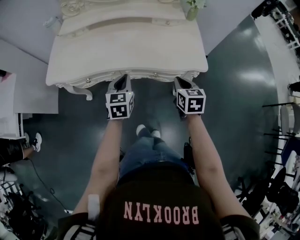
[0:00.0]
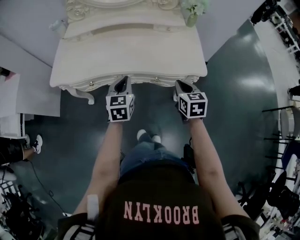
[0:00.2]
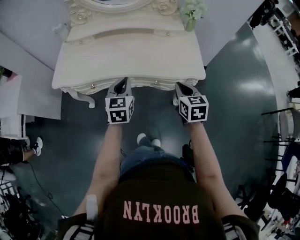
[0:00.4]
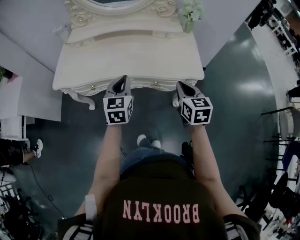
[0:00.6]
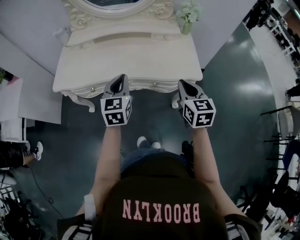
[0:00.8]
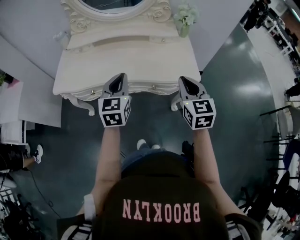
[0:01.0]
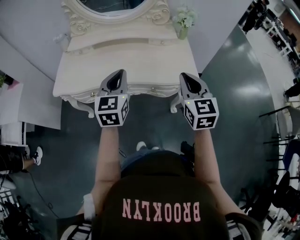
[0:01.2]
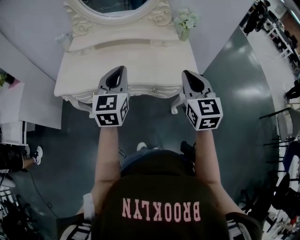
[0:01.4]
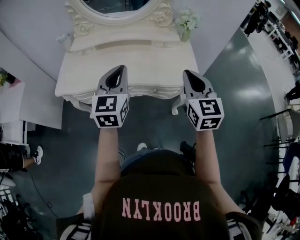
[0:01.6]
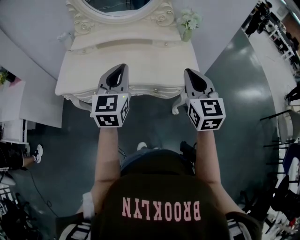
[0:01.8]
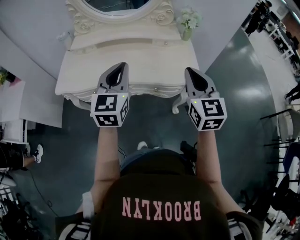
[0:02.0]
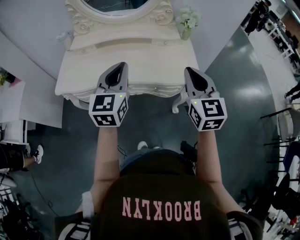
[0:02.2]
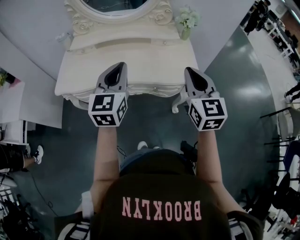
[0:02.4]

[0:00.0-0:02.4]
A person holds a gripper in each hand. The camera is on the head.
0:00.0 to 0:01.2: The two grippers go roughly 20 cm upward. The right gripper rotates about 30 degrees.
0:01.2 to 0:02.4: The left gripper shifts some 5 cm upward.

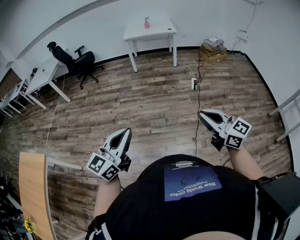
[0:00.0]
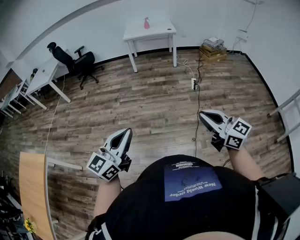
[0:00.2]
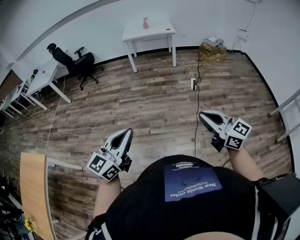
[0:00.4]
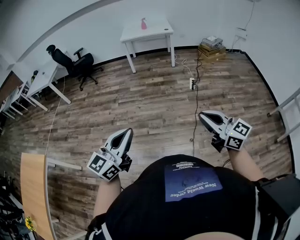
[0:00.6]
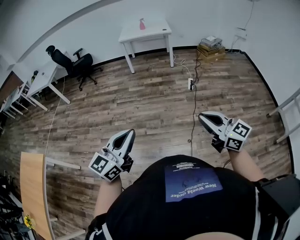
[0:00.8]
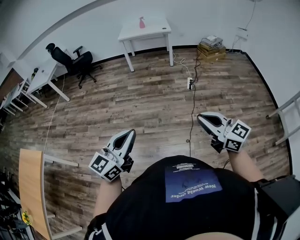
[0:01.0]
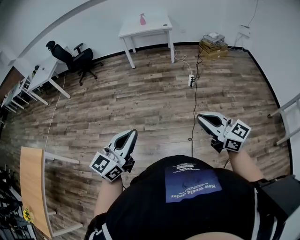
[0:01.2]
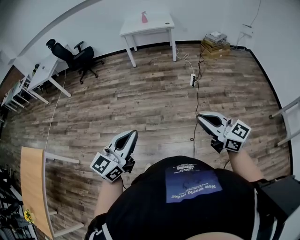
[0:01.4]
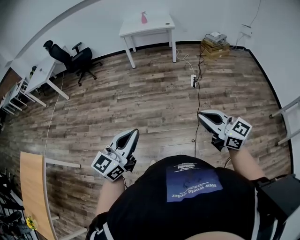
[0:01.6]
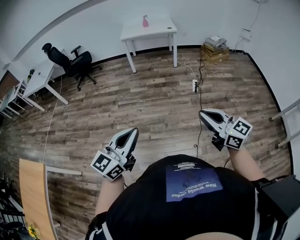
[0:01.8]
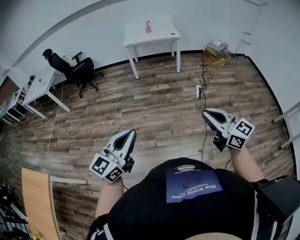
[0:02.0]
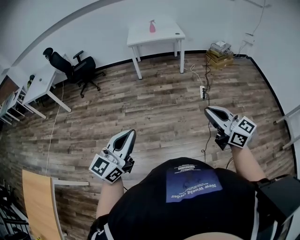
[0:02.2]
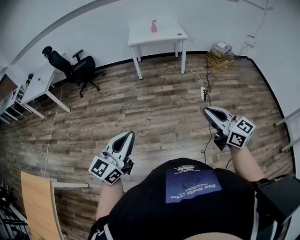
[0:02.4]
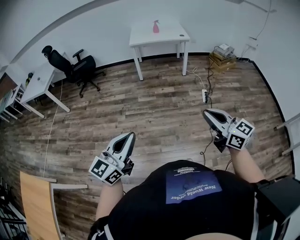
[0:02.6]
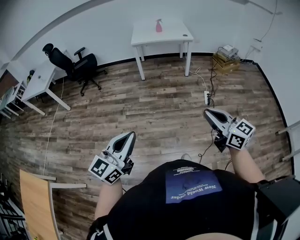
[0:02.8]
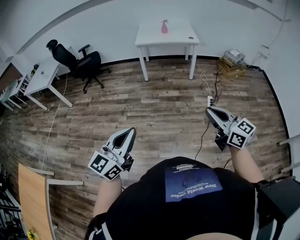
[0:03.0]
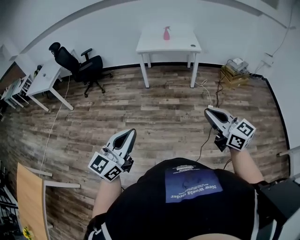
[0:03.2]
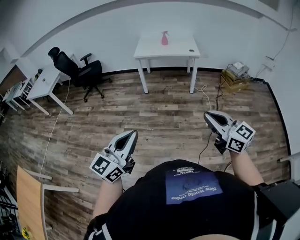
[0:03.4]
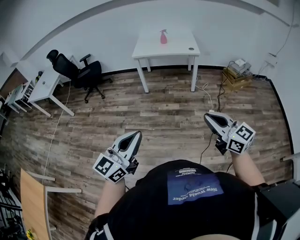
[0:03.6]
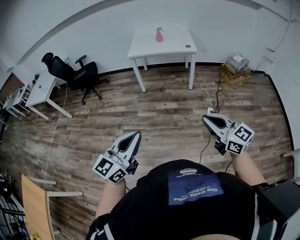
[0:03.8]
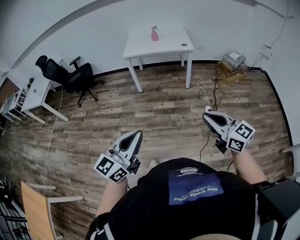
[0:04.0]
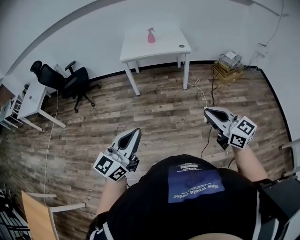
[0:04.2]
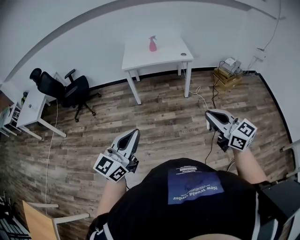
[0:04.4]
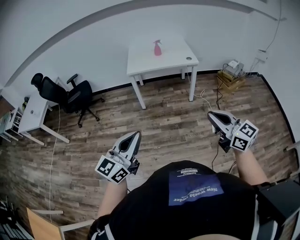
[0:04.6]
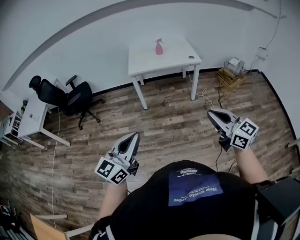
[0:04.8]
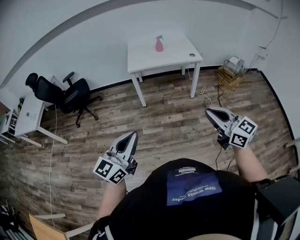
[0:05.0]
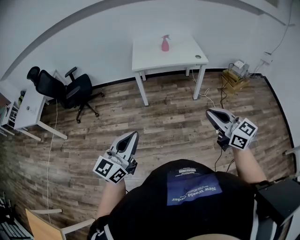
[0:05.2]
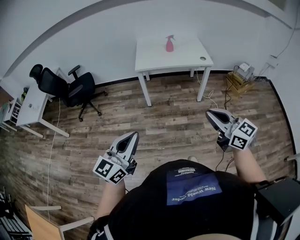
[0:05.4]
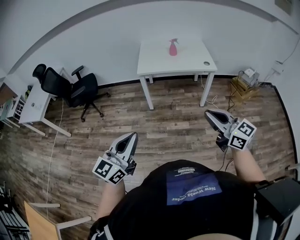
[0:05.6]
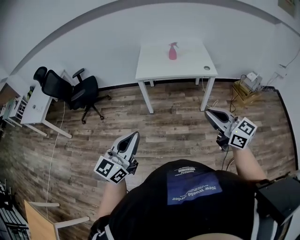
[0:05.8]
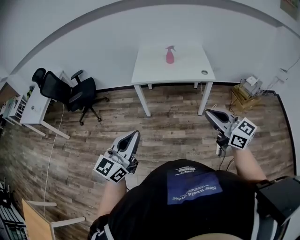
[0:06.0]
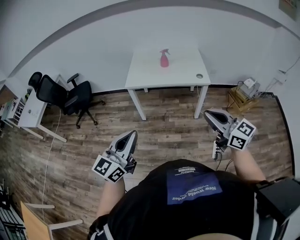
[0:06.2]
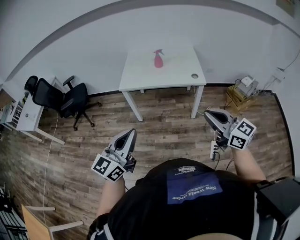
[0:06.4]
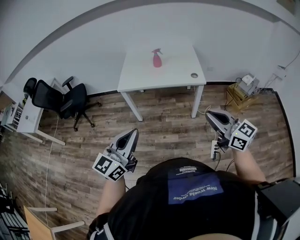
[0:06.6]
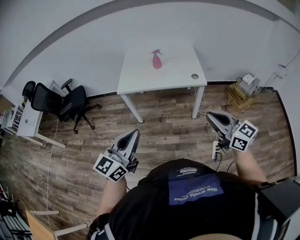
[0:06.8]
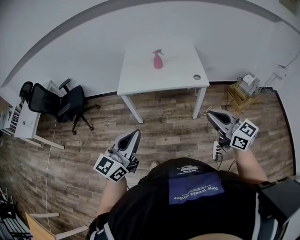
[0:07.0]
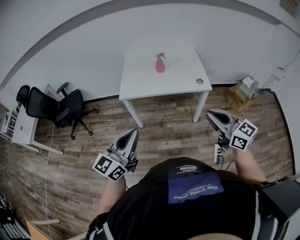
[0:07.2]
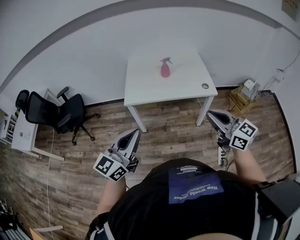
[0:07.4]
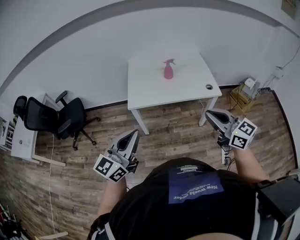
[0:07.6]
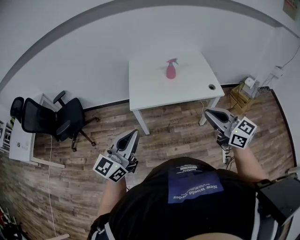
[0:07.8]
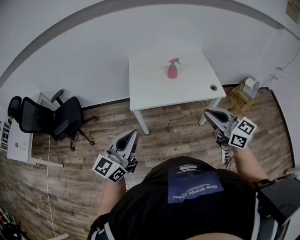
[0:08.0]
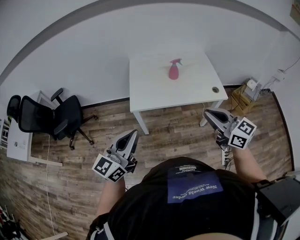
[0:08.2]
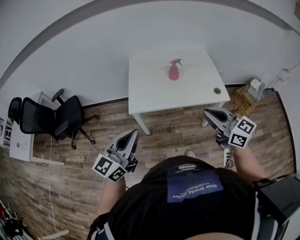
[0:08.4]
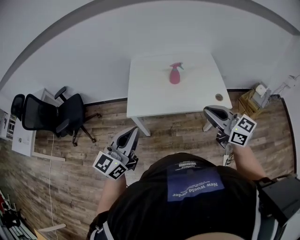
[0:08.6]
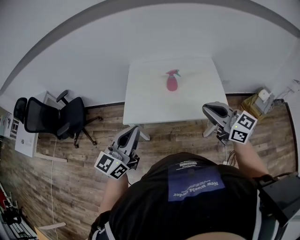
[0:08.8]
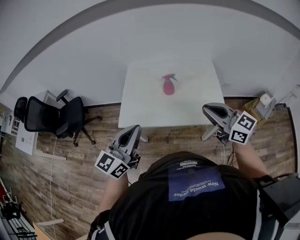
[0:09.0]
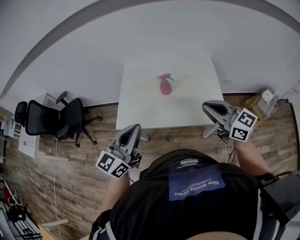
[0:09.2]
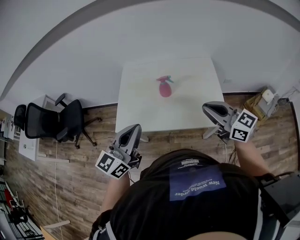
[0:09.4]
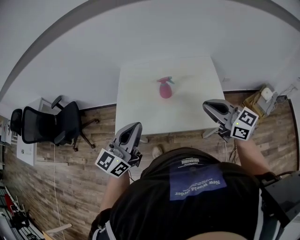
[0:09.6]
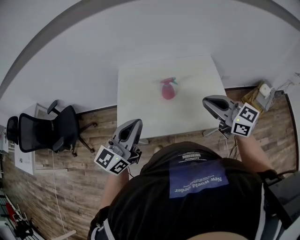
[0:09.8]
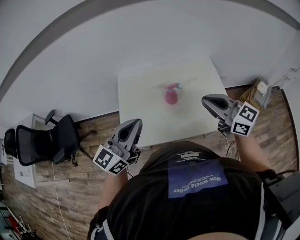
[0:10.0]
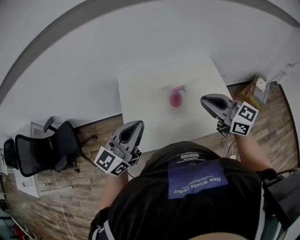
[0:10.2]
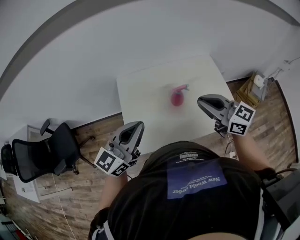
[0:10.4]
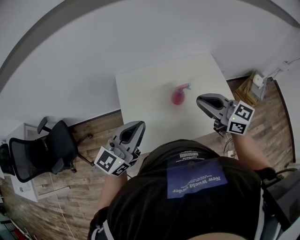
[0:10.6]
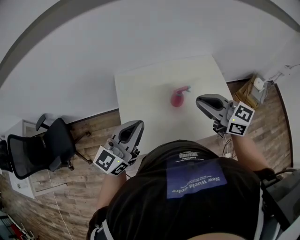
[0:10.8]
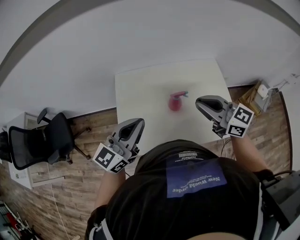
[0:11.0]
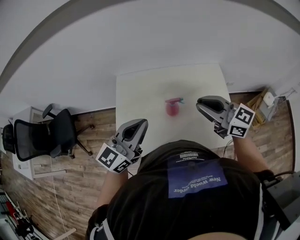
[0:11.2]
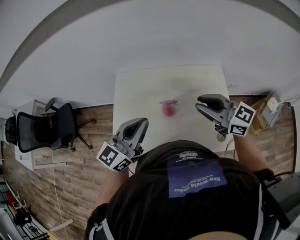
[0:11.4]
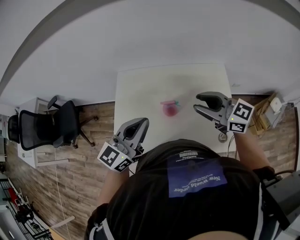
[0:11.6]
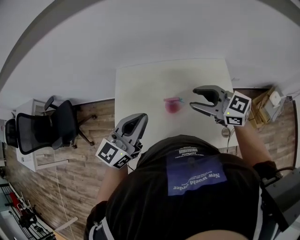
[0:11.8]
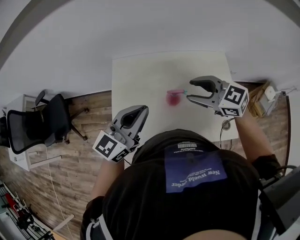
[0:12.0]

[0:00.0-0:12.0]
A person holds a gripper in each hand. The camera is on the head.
0:00.0 to 0:01.6: The two grippers go approximately 10 cm to the right and forward.
0:01.6 to 0:03.0: The left gripper shifts approximately 35 cm forward and to the left. The right gripper is displaced forward by about 35 cm.
0:03.0 to 0:04.4: Both grippers travel together forward, some 25 cm.
0:04.4 to 0:06.0: Both grippers move forward, some 30 cm.
0:06.0 to 0:07.6: The two grippers go about 25 cm forward.
0:07.6 to 0:09.0: The grippers both shift forward and to the right by about 30 cm.
0:09.0 to 0:10.4: The two grippers go approximately 25 cm forward and to the left.
0:10.4 to 0:12.0: The right gripper moves forward and downward, roughly 15 cm, goes to the right and returns, about 10 cm each way, turns by roughly 30 degrees, and opens its fingers; the left gripper shifts approximately 15 cm to the right and forward.

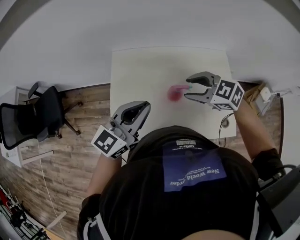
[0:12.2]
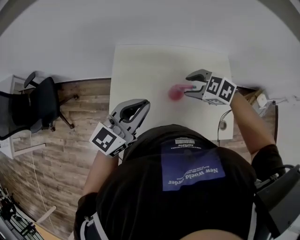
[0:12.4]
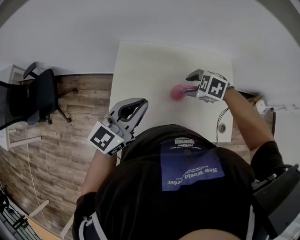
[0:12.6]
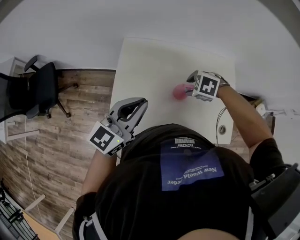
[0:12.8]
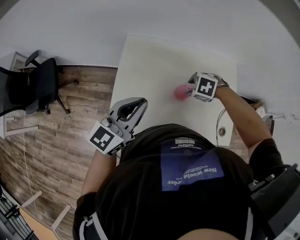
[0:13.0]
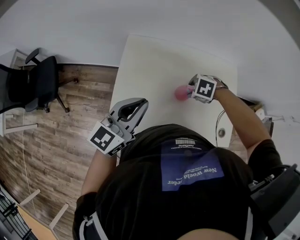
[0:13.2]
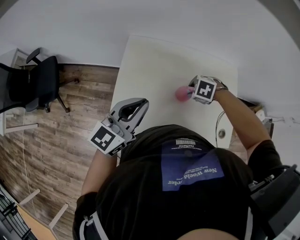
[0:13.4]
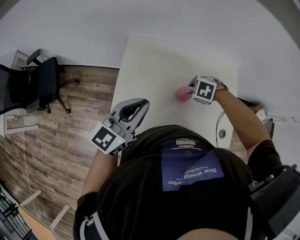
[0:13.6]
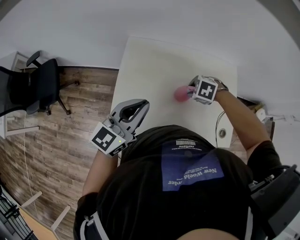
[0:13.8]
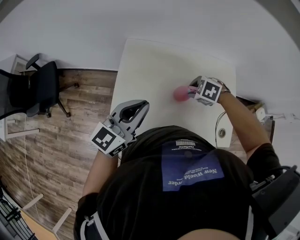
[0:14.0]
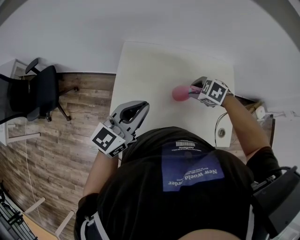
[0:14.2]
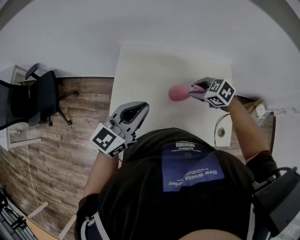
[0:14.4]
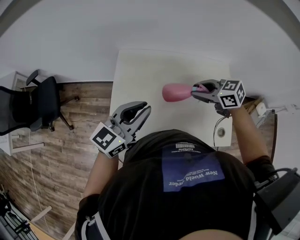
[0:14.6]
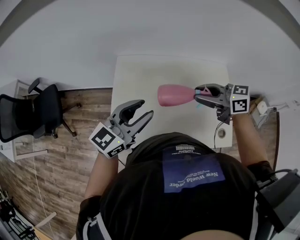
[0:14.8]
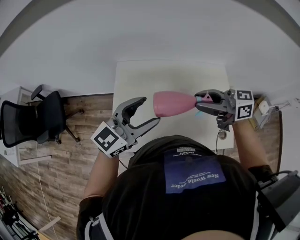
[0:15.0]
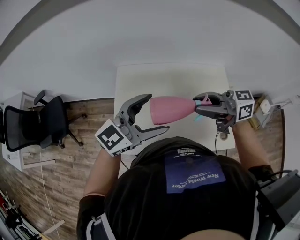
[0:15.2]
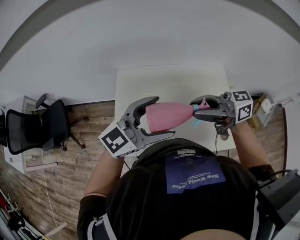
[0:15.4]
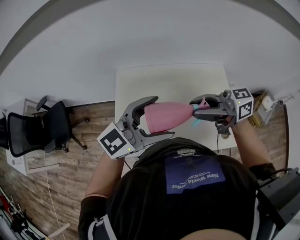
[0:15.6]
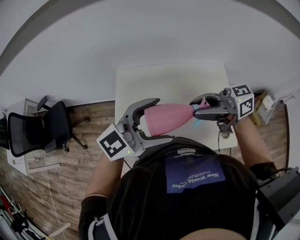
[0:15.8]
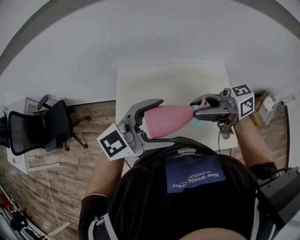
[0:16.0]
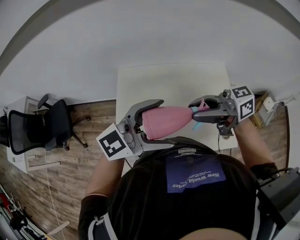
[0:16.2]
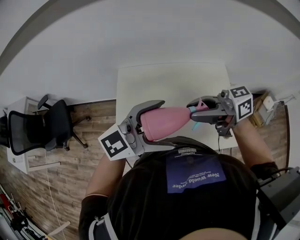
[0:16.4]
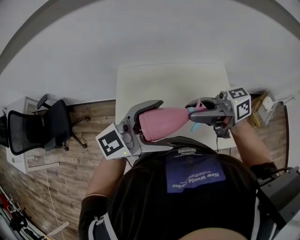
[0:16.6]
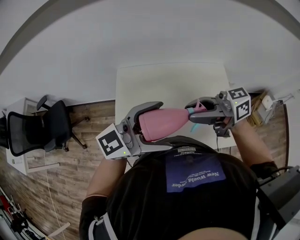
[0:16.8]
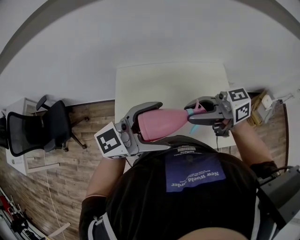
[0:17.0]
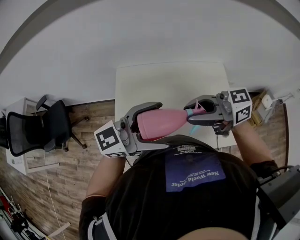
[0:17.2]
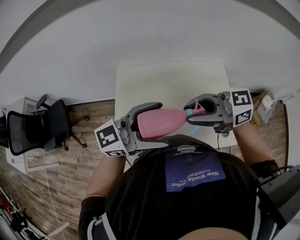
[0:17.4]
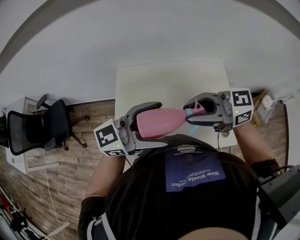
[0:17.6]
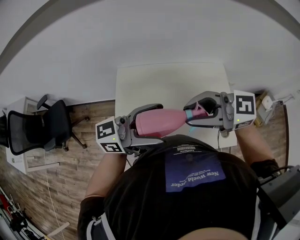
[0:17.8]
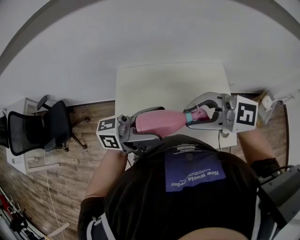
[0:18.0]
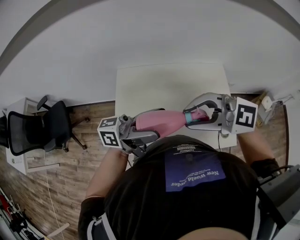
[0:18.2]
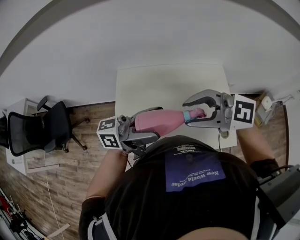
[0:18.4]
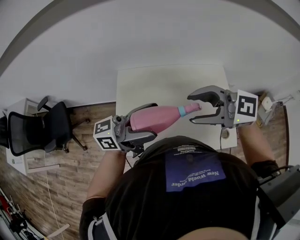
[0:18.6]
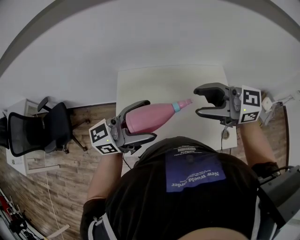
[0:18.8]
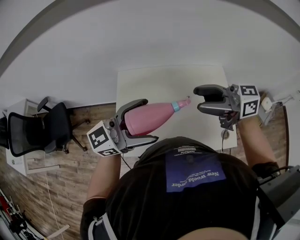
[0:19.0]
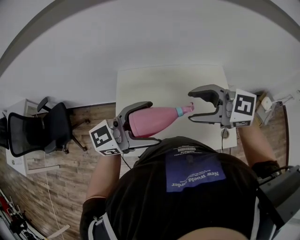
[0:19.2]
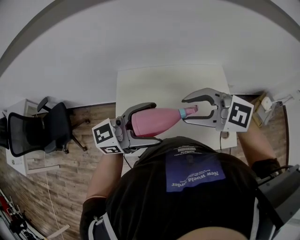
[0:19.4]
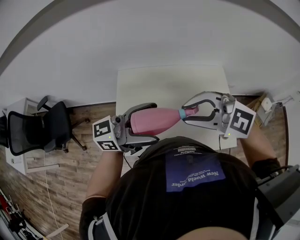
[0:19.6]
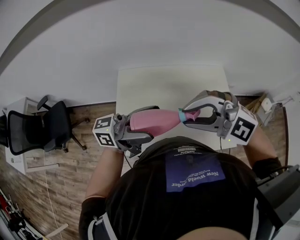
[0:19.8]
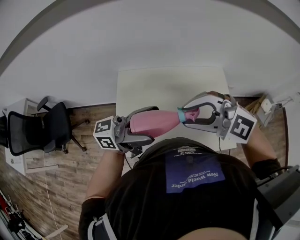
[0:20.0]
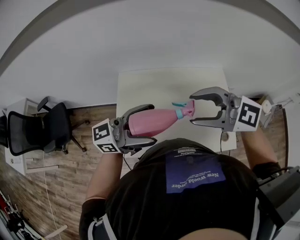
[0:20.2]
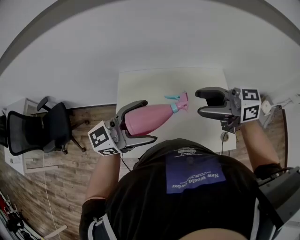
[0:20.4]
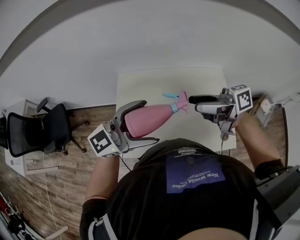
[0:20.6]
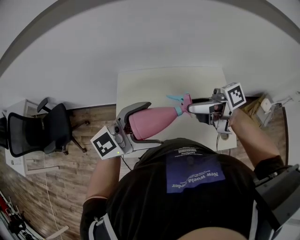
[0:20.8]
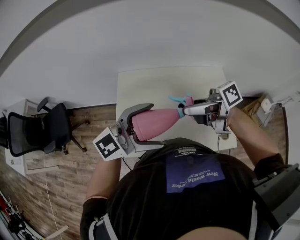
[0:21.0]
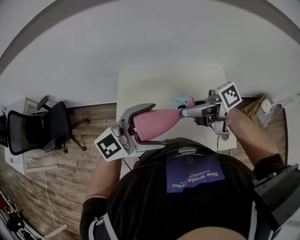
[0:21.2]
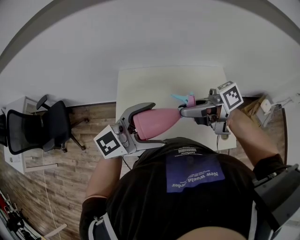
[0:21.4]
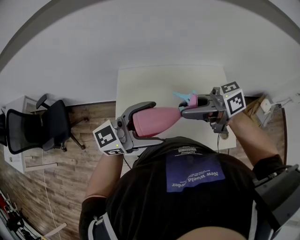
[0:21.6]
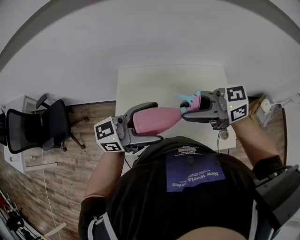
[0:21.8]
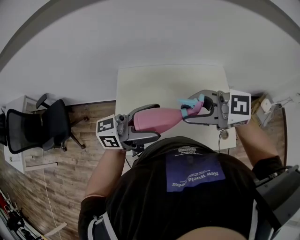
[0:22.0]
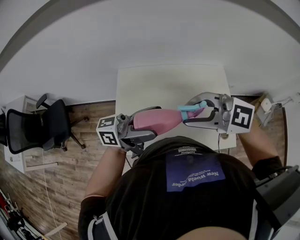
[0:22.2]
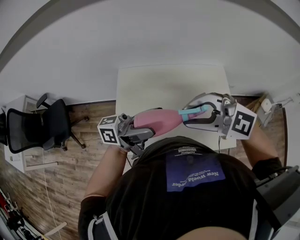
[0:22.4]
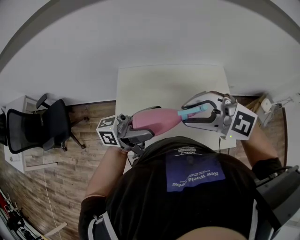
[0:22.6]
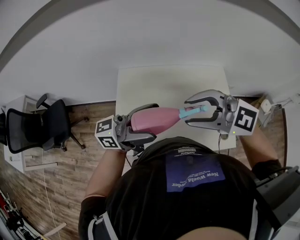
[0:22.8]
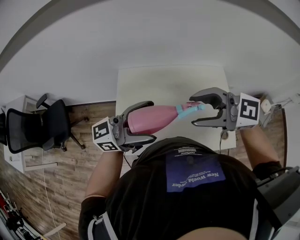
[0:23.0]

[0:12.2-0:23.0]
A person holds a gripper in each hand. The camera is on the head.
0:12.2 to 0:13.8: The right gripper goes roughly 15 cm downward, and tilts its fingers roughly 40 degrees downward. Meanwhile the left gripper moves about 5 cm.
0:13.8 to 0:15.2: The left gripper shifts by roughly 15 cm, turns by some 30 degrees, and opens its fingers; the right gripper goes some 25 cm upward, and points its fingers approximately 80 degrees further upward.
0:15.2 to 0:16.8: The left gripper ends up some 5 cm from where it was.
0:16.8 to 0:18.4: The left gripper changes its angle by approximately 40 degrees; the right gripper rolls counterclockwise, seen from behind, by some 40 degrees.
0:18.4 to 0:20.0: The right gripper rotates some 20 degrees, and opens and closes again.
0:20.0 to 0:21.4: The left gripper rotates some 40 degrees. Meanwhile the right gripper shifts by approximately 5 cm, rolls clockwise, seen from behind, by some 80 degrees, and opens, then closes again.
0:21.4 to 0:23.0: The left gripper changes its angle by roughly 30 degrees. Meanwhile the right gripper moves roughly 5 cm, twists approximately 60 degrees counterclockwise, seen from behind, and opens up.
